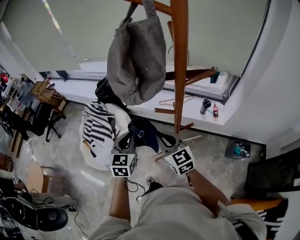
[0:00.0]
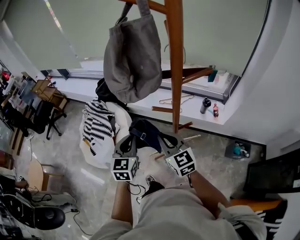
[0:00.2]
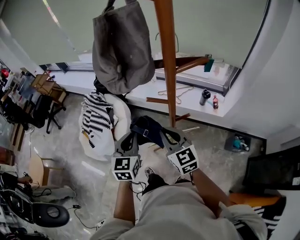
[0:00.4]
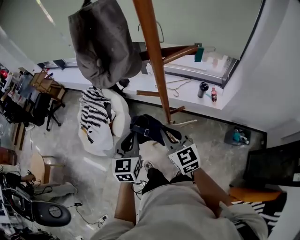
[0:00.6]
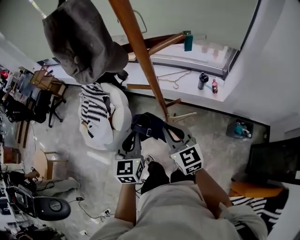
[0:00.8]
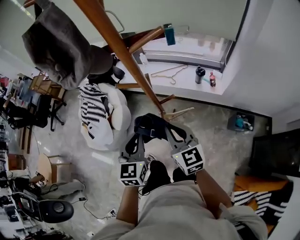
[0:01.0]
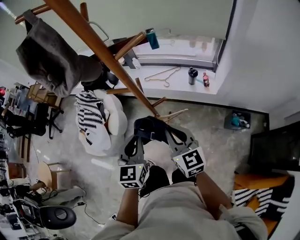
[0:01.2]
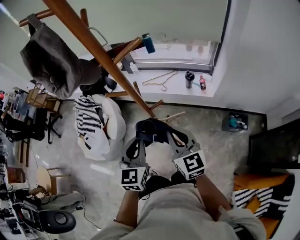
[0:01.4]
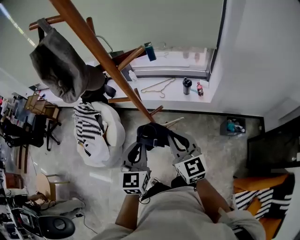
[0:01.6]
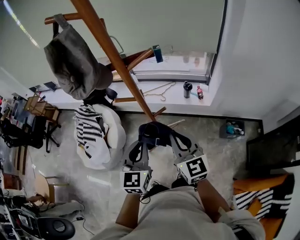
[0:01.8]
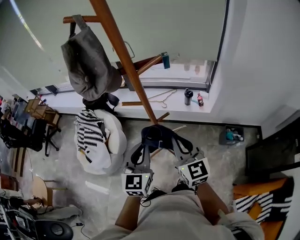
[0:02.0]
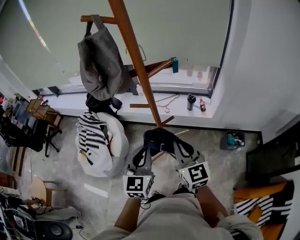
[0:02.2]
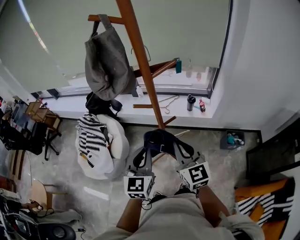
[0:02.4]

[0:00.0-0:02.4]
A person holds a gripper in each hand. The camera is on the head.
0:00.0 to 0:01.2: Both grippers travel together to the right and backward, roughly 20 cm.
0:01.2 to 0:02.4: Both grippers travel together upward, some 10 cm.

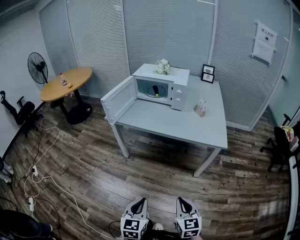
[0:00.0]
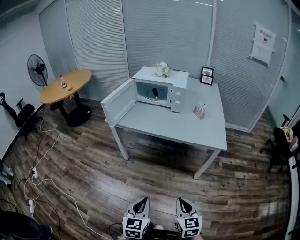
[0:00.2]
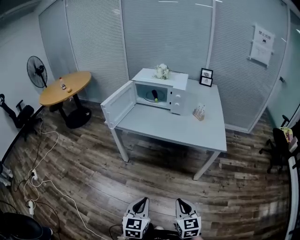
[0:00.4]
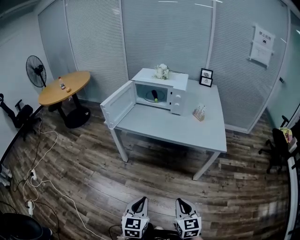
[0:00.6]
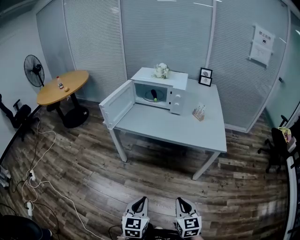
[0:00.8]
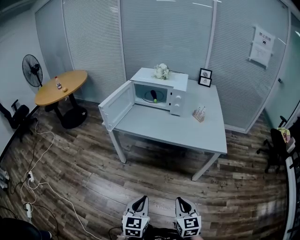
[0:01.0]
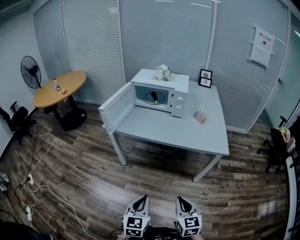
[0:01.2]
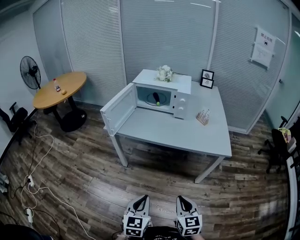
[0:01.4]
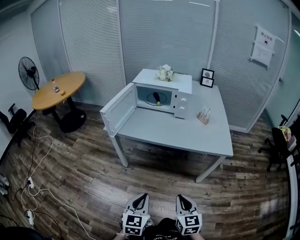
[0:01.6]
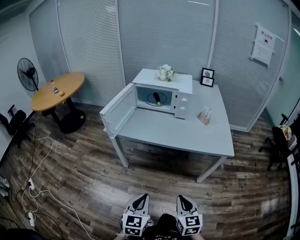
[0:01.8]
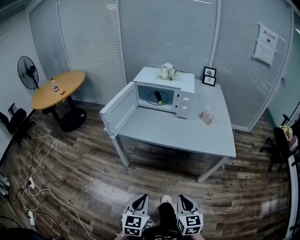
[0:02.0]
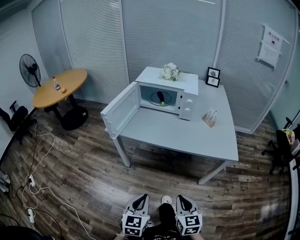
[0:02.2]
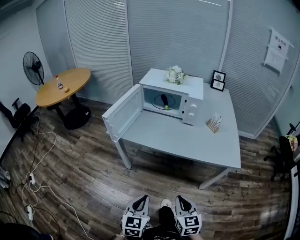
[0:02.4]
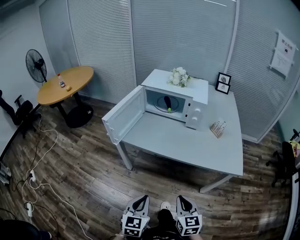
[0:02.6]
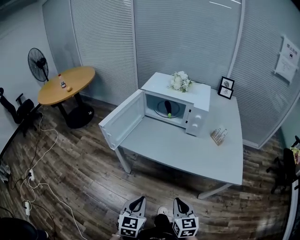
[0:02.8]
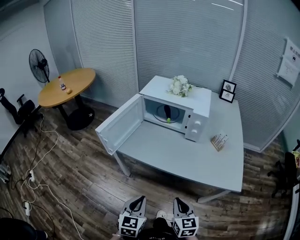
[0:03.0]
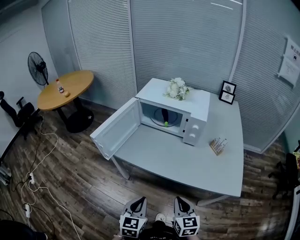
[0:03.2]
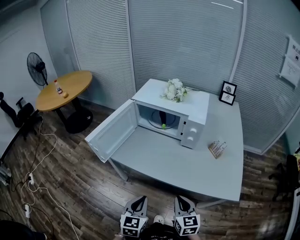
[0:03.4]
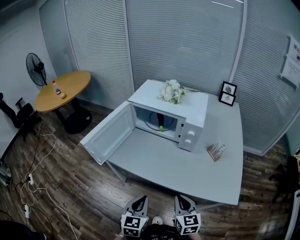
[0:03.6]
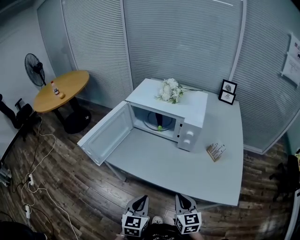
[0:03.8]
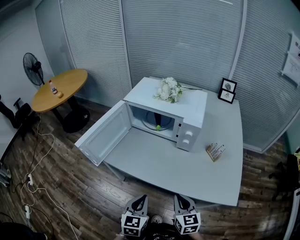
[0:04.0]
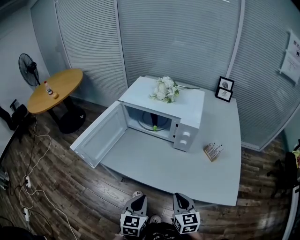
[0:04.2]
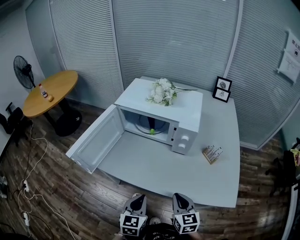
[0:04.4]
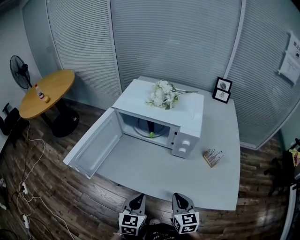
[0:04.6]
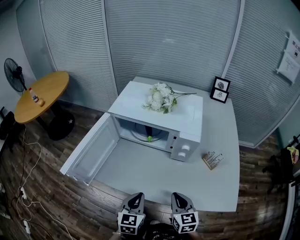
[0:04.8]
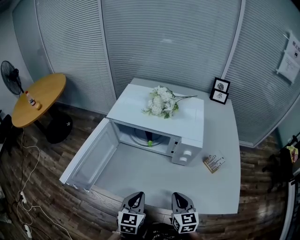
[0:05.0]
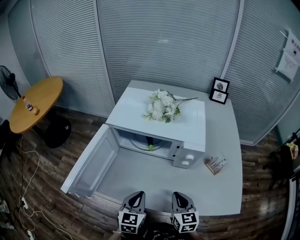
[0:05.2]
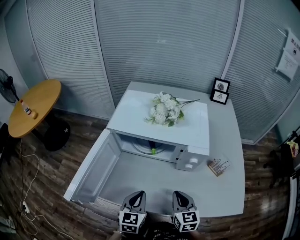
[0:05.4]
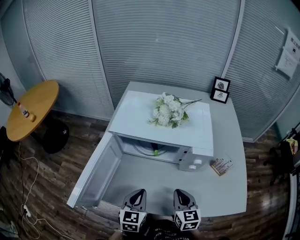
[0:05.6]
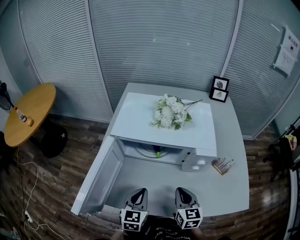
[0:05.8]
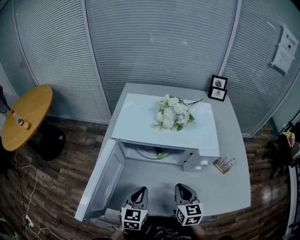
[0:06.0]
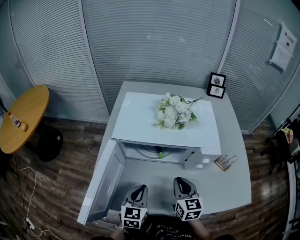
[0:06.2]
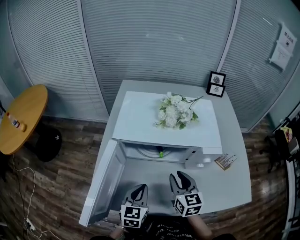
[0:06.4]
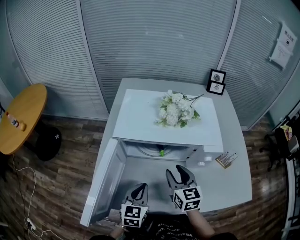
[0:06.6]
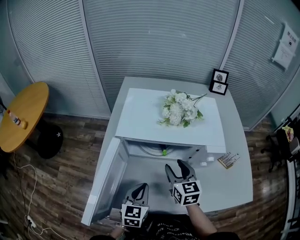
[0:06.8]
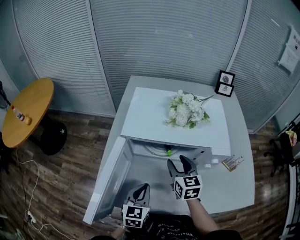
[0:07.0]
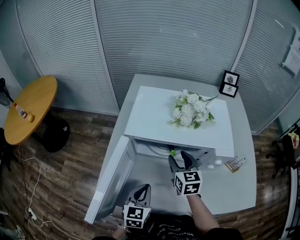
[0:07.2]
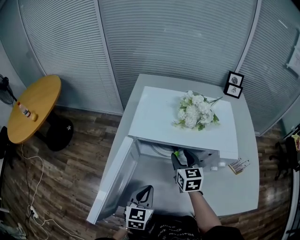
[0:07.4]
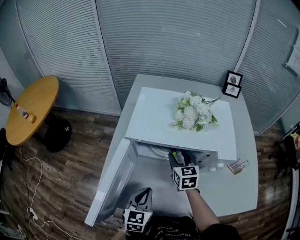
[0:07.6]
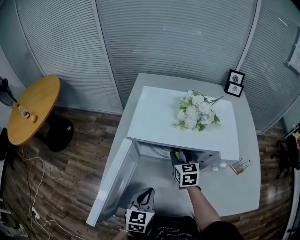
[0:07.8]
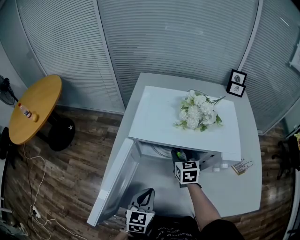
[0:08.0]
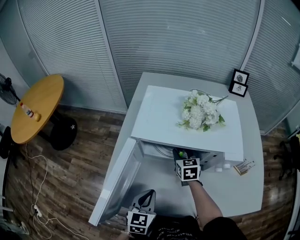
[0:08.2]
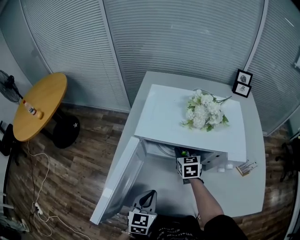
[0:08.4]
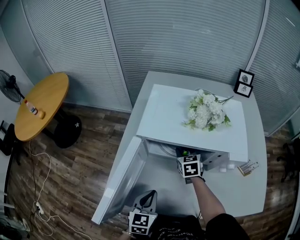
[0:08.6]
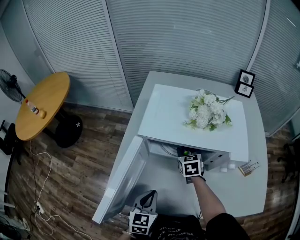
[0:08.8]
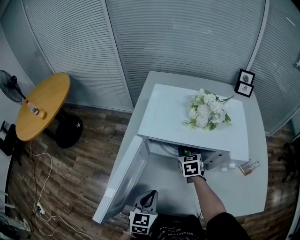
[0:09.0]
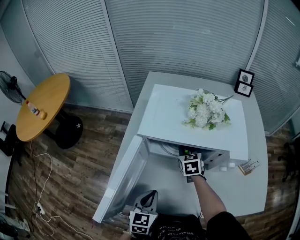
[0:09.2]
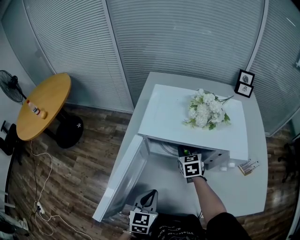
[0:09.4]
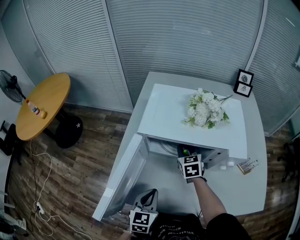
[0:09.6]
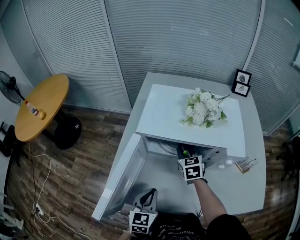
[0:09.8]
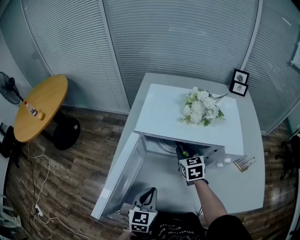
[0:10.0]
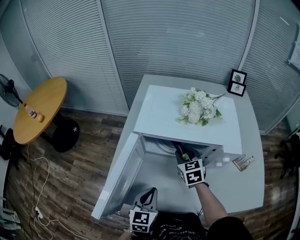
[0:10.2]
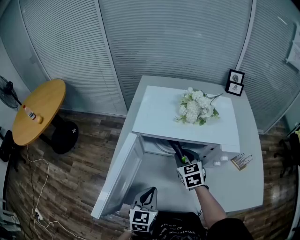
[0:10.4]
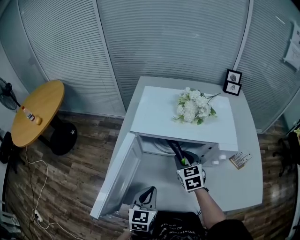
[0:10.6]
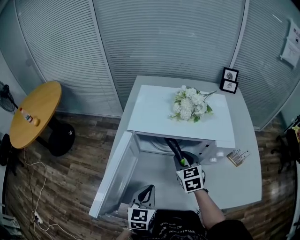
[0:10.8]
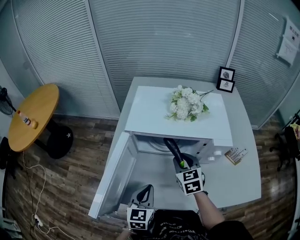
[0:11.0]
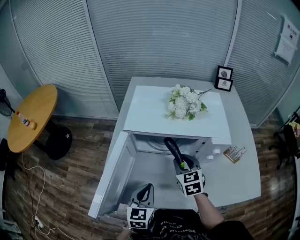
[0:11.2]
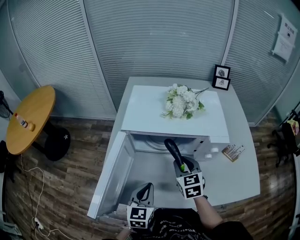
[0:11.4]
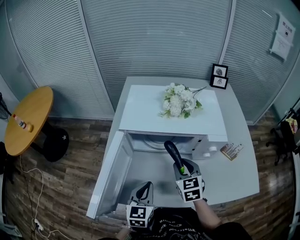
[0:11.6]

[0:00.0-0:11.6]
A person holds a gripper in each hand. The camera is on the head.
0:00.0 to 0:01.4: The left gripper travels forward by approximately 10 cm; the right gripper travels forward and to the left by approximately 10 cm.
0:01.4 to 0:02.8: Both grippers travel together forward, approximately 15 cm.
0:02.8 to 0:04.4: Both grippers move forward and to the right, some 20 cm.
0:04.4 to 0:05.8: Both grippers move forward and to the left, roughly 20 cm.
0:05.8 to 0:07.2: The right gripper heads forward and to the left, covering approximately 20 cm, and opens, while the left gripper goes about 5 cm to the left.
0:07.2 to 0:08.8: The right gripper heads downward and forward, covering roughly 10 cm.
0:08.8 to 0:10.2: The right gripper shifts roughly 5 cm backward.
0:10.2 to 0:11.6: The right gripper heads backward, covering about 10 cm.

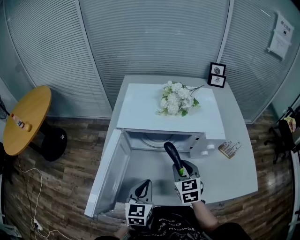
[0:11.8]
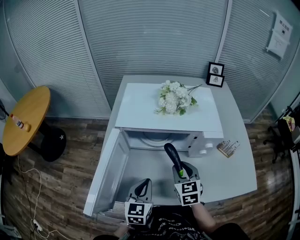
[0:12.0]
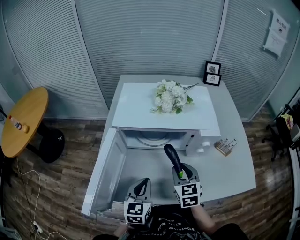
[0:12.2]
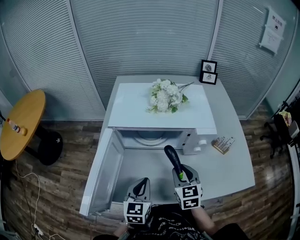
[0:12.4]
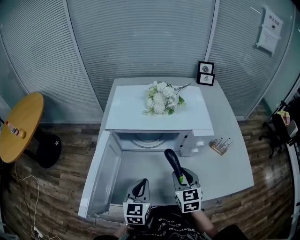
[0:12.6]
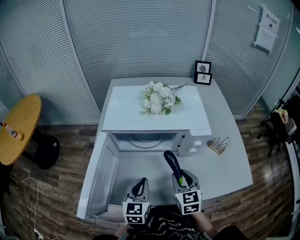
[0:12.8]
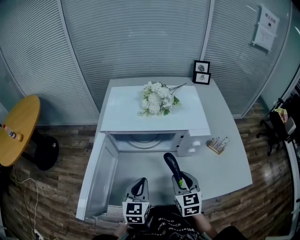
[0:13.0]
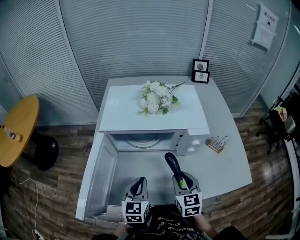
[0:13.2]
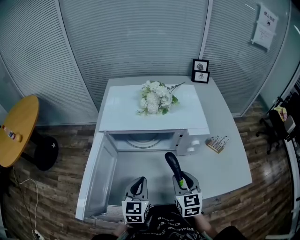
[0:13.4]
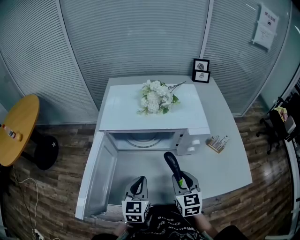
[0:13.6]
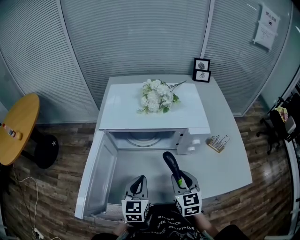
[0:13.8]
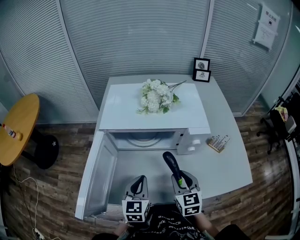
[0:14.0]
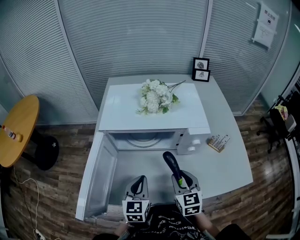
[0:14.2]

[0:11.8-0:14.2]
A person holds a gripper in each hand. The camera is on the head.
0:11.8 to 0:13.0: The right gripper travels backward and to the right by approximately 10 cm.
0:13.0 to 0:14.2: The two grippers keep their place.

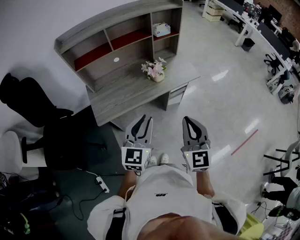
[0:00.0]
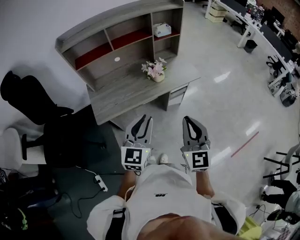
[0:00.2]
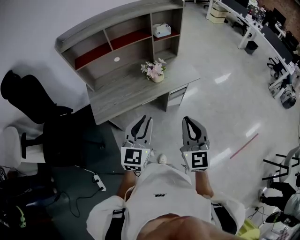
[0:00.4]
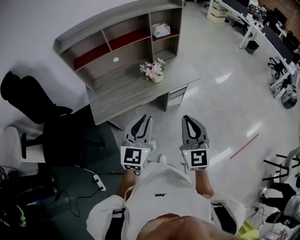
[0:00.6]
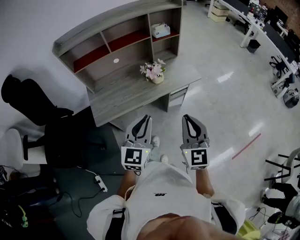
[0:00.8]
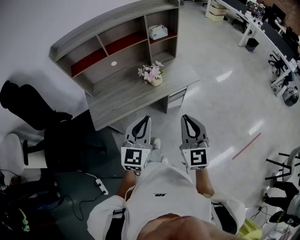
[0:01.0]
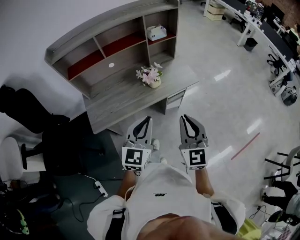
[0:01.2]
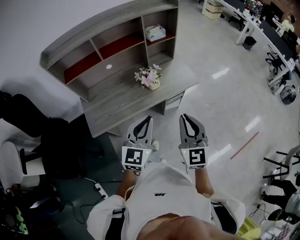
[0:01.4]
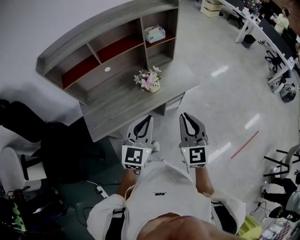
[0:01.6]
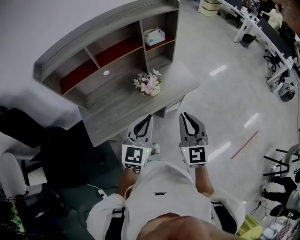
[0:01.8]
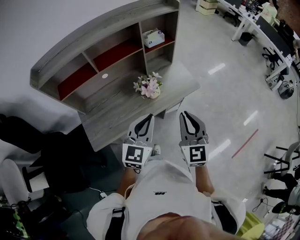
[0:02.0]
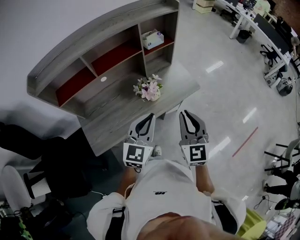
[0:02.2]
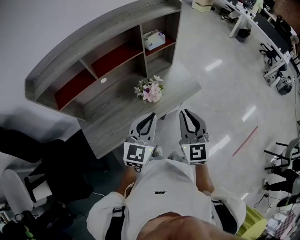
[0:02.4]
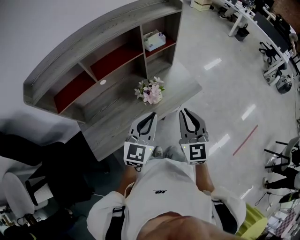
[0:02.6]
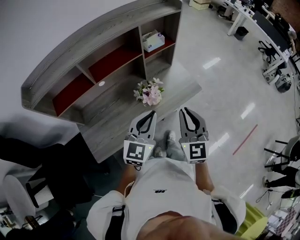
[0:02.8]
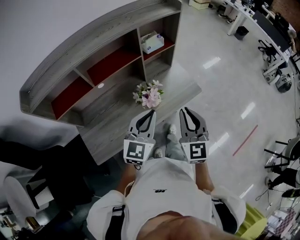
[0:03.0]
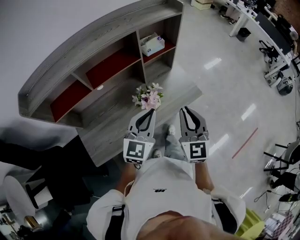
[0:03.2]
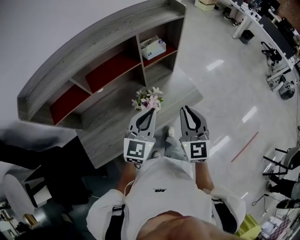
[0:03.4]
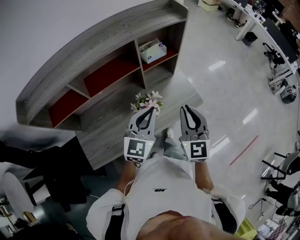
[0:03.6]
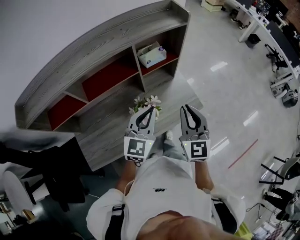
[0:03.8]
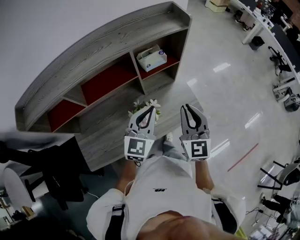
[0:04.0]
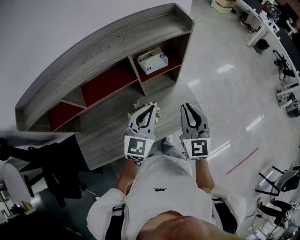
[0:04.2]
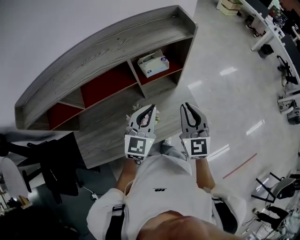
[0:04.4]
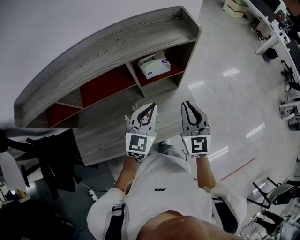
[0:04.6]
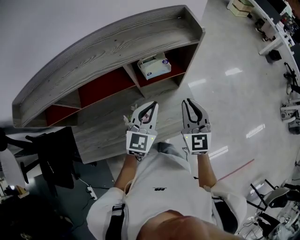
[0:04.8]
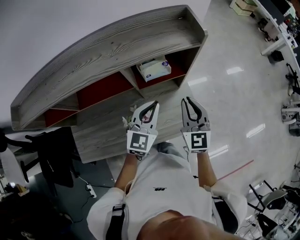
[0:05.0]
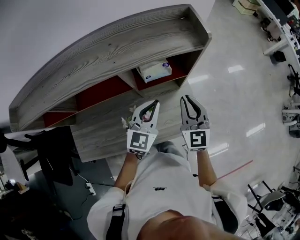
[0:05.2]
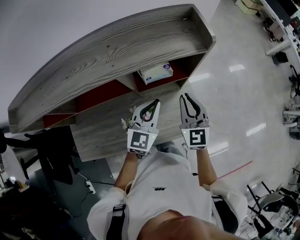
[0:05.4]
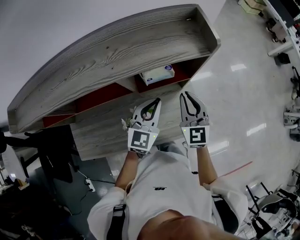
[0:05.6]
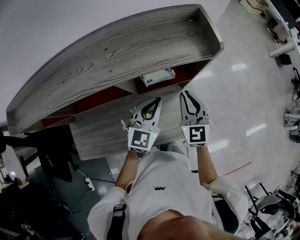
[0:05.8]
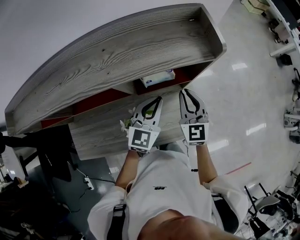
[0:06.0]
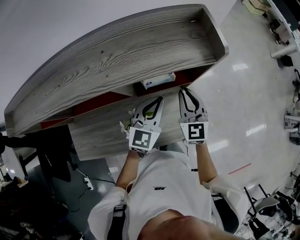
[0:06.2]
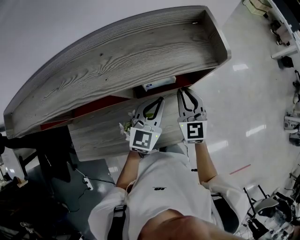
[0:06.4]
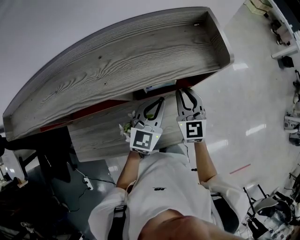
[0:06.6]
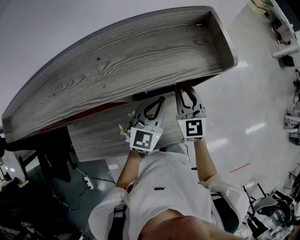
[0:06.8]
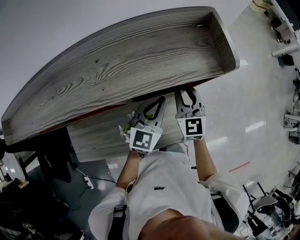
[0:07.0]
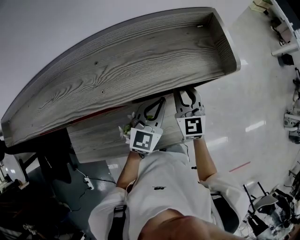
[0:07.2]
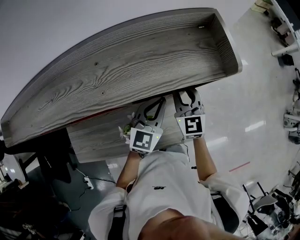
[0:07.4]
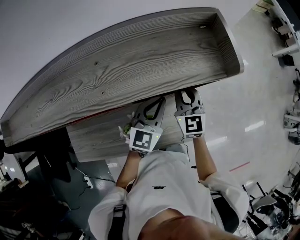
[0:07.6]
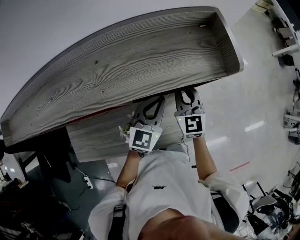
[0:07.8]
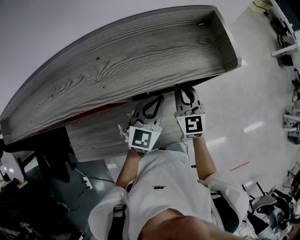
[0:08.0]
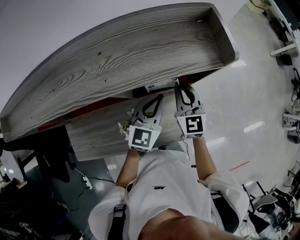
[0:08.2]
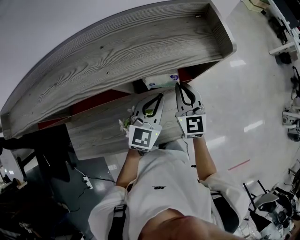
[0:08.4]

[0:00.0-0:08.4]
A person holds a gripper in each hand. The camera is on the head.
0:00.0 to 0:01.4: The right gripper goes approximately 10 cm forward; the left gripper goes roughly 10 cm forward and to the right.
0:01.4 to 0:02.8: Both grippers travel together forward, about 15 cm.
0:02.8 to 0:04.2: The two grippers go some 20 cm forward.
0:04.2 to 0:05.6: The two grippers go approximately 15 cm forward and downward.
0:05.6 to 0:07.0: The grippers both shift forward by approximately 5 cm.
0:07.0 to 0:08.4: There are only small adjustments of the grippers.
